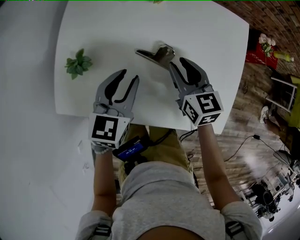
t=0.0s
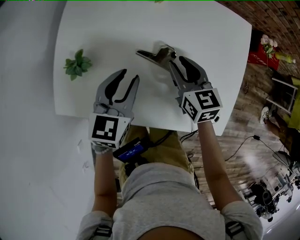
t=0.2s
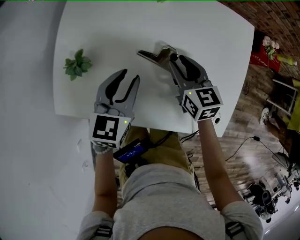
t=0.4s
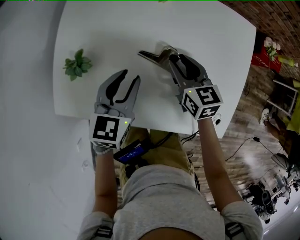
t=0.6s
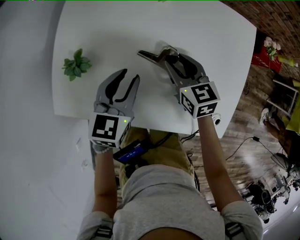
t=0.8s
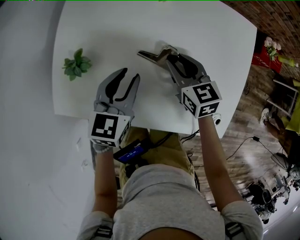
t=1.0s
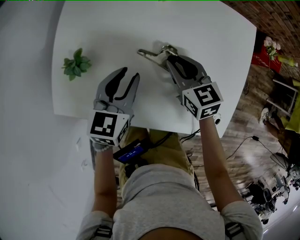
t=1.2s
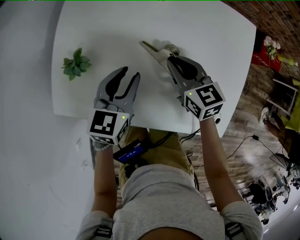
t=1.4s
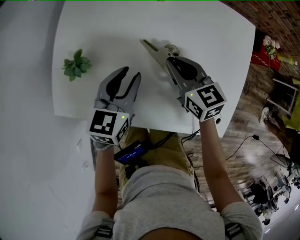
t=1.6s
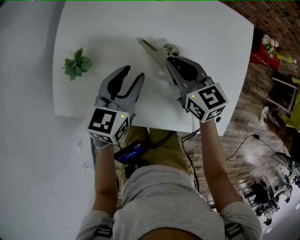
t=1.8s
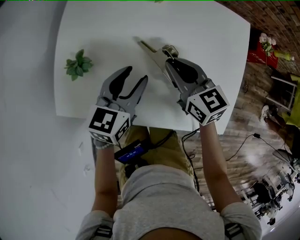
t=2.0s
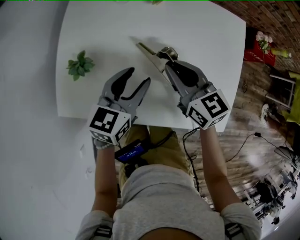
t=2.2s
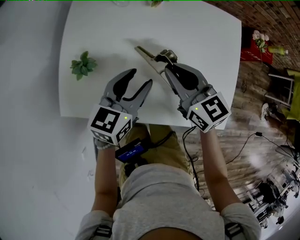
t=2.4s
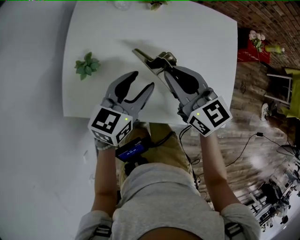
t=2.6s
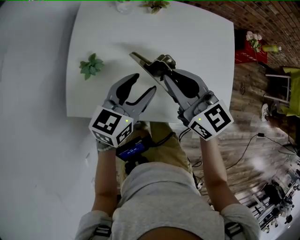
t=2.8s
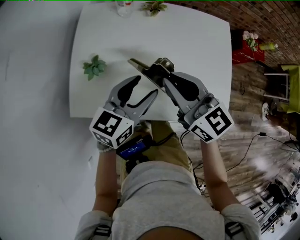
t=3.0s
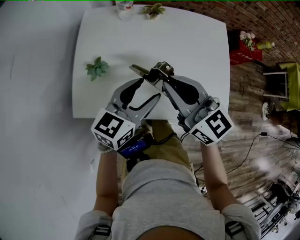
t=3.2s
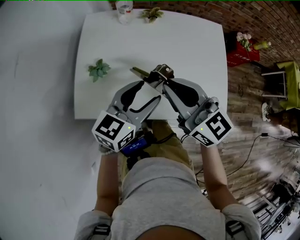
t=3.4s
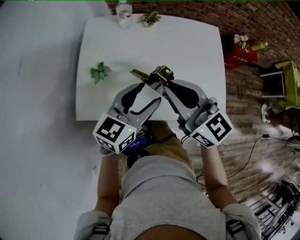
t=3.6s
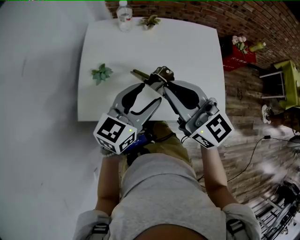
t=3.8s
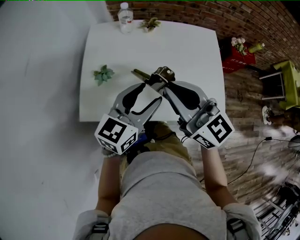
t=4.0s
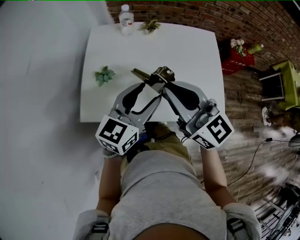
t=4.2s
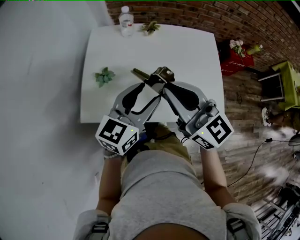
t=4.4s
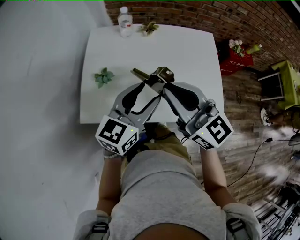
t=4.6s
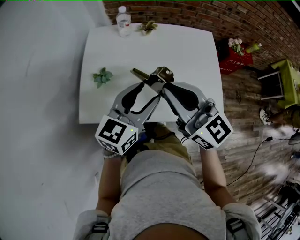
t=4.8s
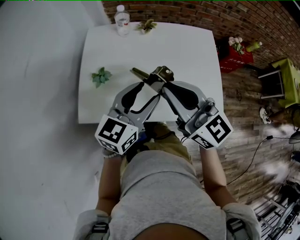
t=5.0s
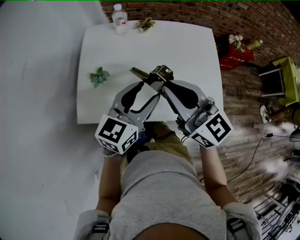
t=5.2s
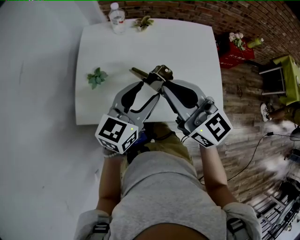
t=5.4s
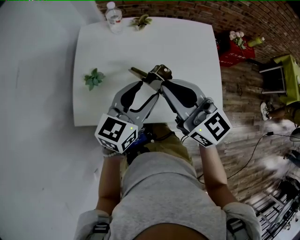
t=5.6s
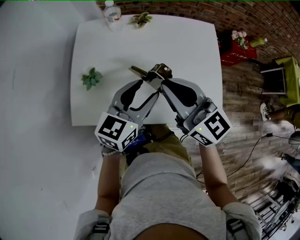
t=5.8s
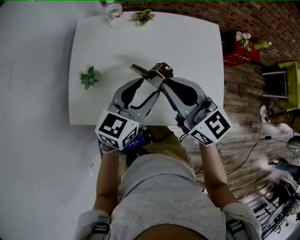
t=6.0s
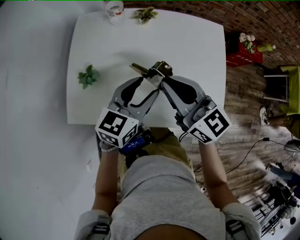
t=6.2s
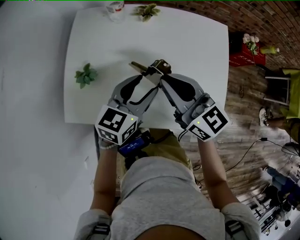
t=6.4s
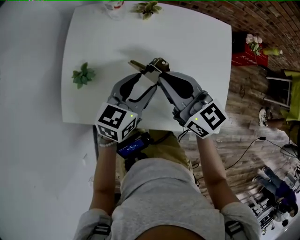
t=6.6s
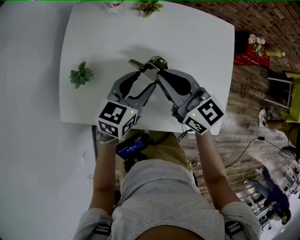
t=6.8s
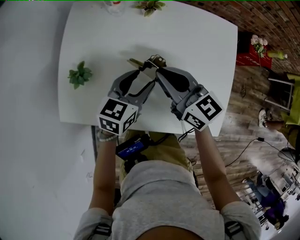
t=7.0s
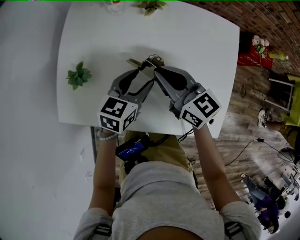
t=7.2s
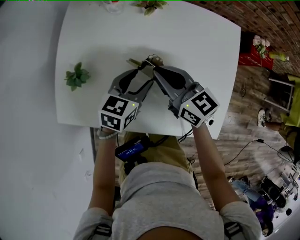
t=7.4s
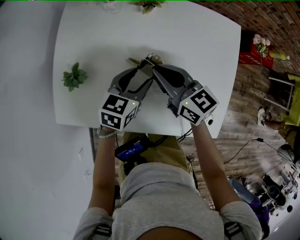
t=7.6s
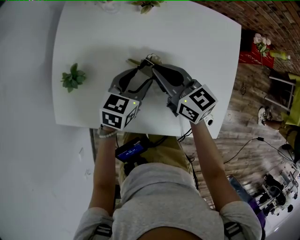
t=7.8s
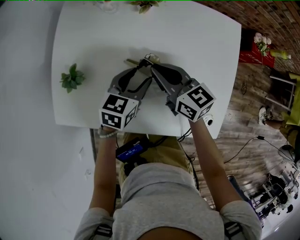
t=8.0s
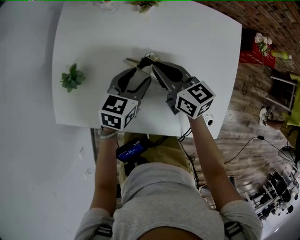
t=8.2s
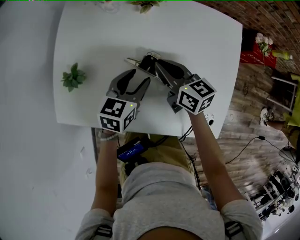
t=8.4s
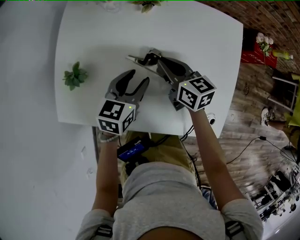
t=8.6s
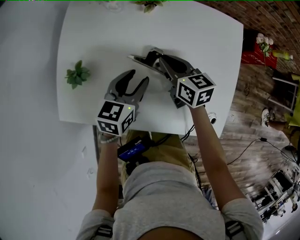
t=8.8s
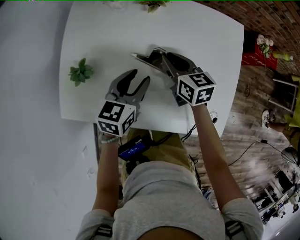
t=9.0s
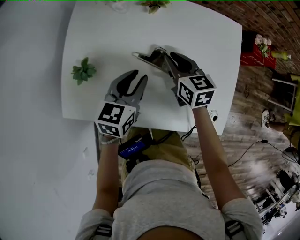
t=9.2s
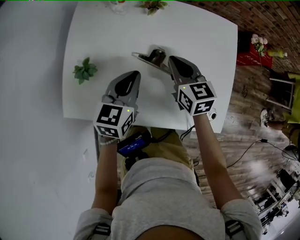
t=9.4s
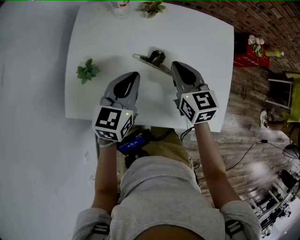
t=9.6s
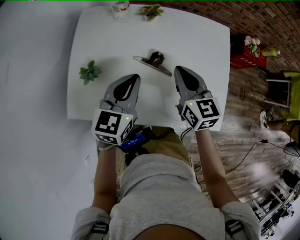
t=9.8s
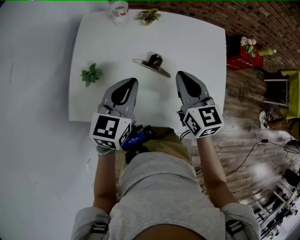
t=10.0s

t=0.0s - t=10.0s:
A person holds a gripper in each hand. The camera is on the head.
t=0.0s - t=1.4s: The grippers move only a little.
t=1.4s - t=2.8s: The right gripper moves upward and backward, some 20 cm, and turns by roughly 20 degrees, while the left gripper travels upward and backward by some 10 cm, and opens its fingers.
t=2.8s - t=4.2s: The two grippers go about 10 cm upward and backward.
t=4.2s - t=5.8s: The right gripper shifts by about 5 cm, while the left gripper moves roughly 5 cm.
t=5.8s - t=7.2s: The two grippers go about 15 cm downward and forward.
t=7.2s - t=8.6s: The right gripper is displaced downward by some 10 cm.
t=8.6s - t=10.0s: The right gripper goes some 15 cm upward and backward, and changes its angle by approximately 30 degrees; the left gripper is displaced upward by about 15 cm, and closes.

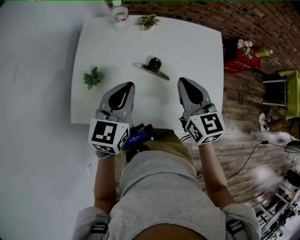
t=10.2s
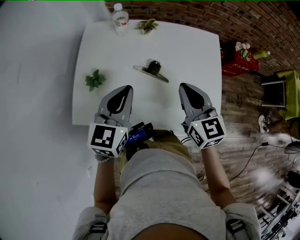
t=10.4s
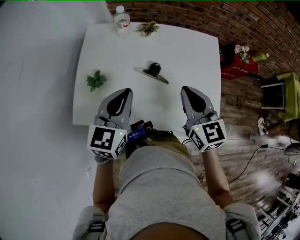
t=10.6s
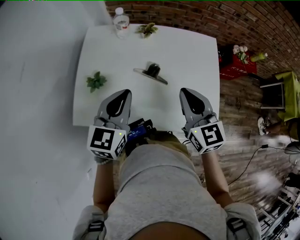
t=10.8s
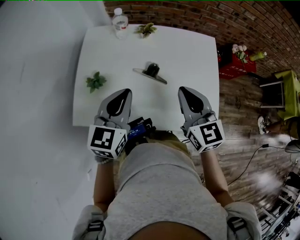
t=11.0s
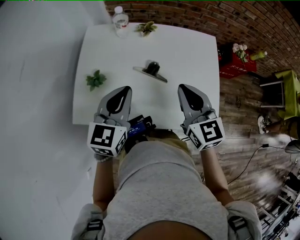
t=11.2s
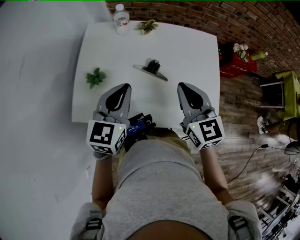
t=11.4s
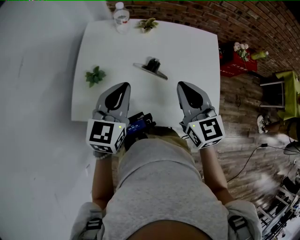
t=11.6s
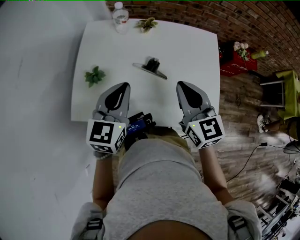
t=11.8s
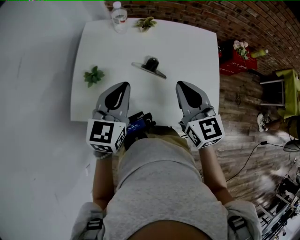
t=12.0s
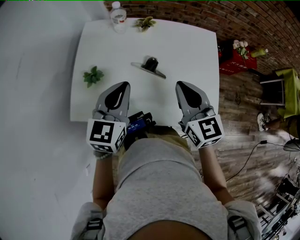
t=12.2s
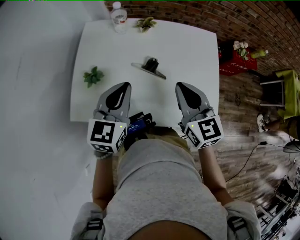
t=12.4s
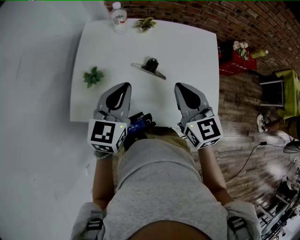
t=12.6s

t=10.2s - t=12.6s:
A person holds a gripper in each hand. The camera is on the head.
t=10.2s - t=11.4s: The grippers stay close to where they were, moving slightly.
t=11.4s - t=12.6s: The two grippers keep their place.

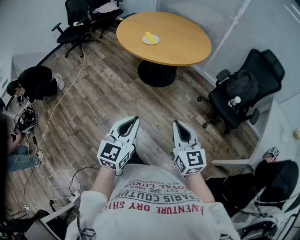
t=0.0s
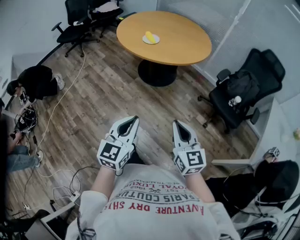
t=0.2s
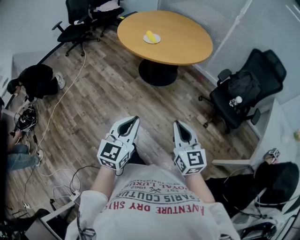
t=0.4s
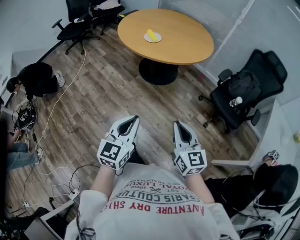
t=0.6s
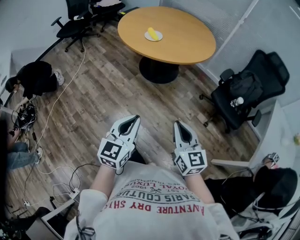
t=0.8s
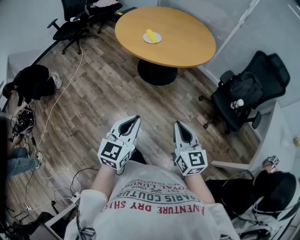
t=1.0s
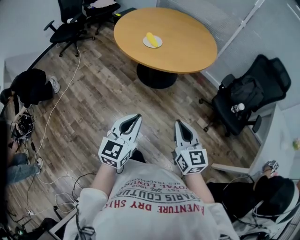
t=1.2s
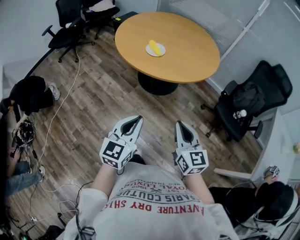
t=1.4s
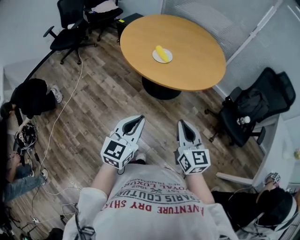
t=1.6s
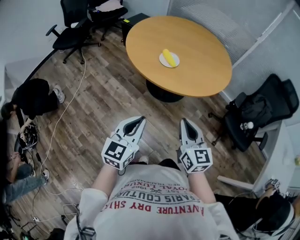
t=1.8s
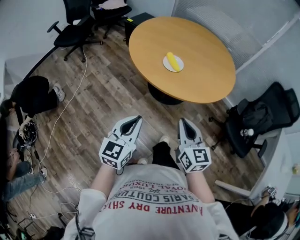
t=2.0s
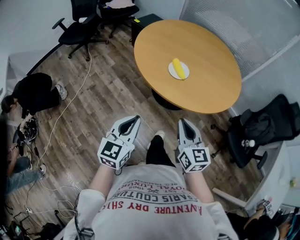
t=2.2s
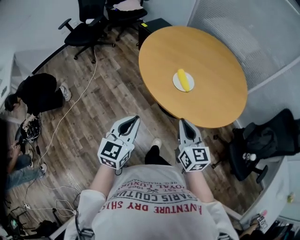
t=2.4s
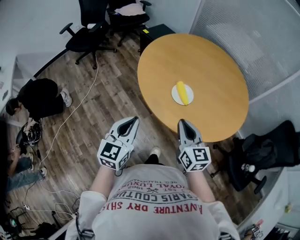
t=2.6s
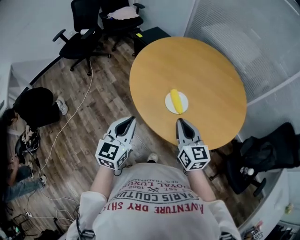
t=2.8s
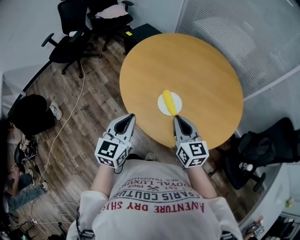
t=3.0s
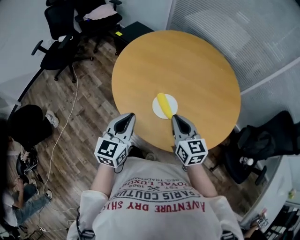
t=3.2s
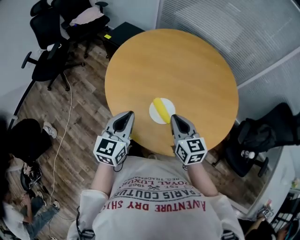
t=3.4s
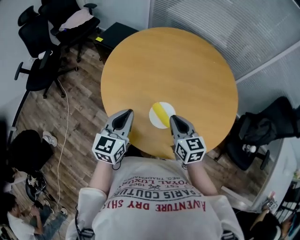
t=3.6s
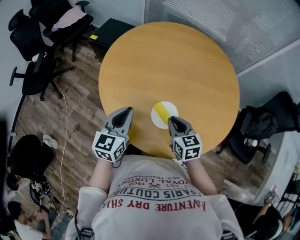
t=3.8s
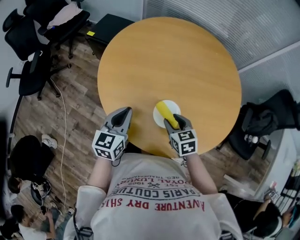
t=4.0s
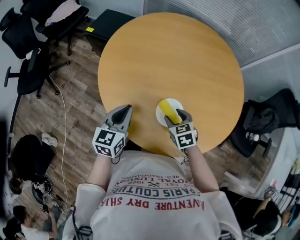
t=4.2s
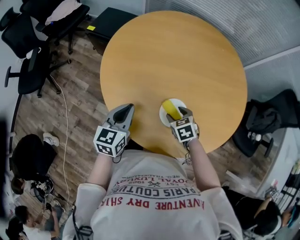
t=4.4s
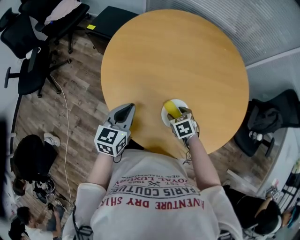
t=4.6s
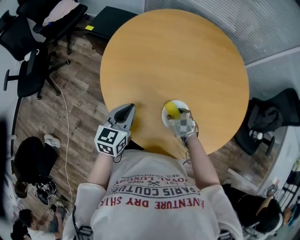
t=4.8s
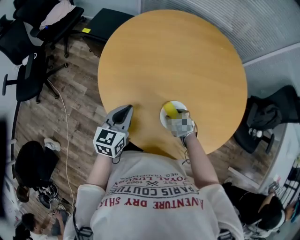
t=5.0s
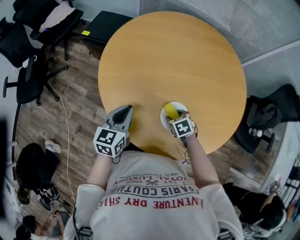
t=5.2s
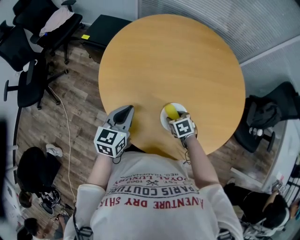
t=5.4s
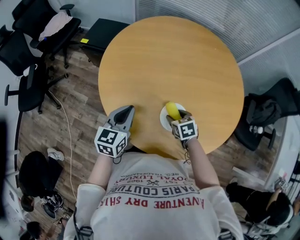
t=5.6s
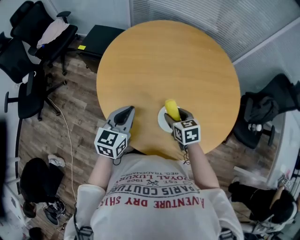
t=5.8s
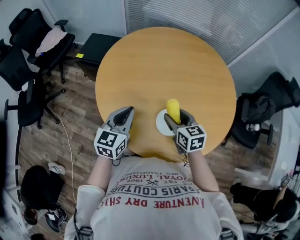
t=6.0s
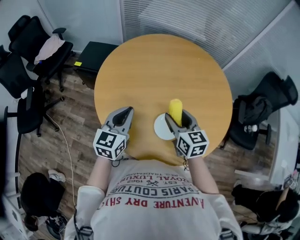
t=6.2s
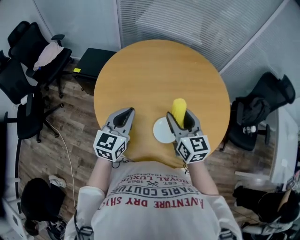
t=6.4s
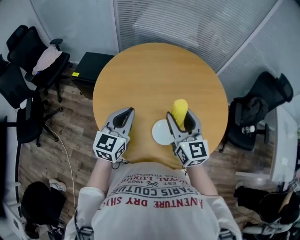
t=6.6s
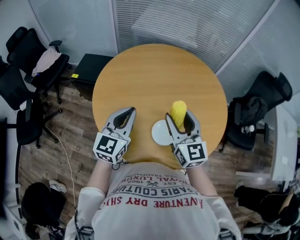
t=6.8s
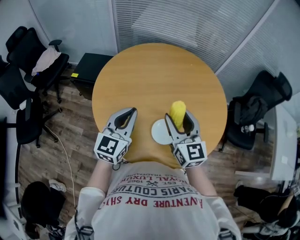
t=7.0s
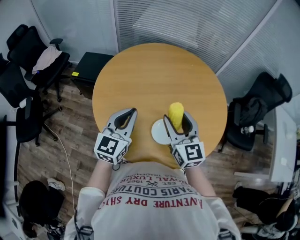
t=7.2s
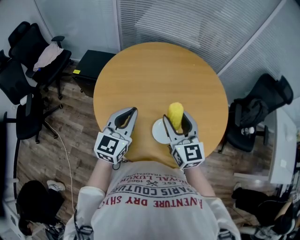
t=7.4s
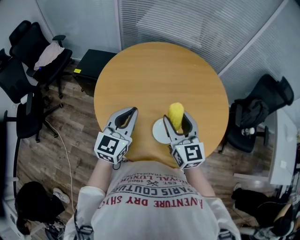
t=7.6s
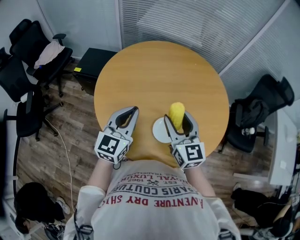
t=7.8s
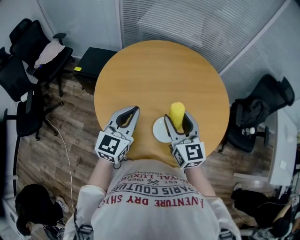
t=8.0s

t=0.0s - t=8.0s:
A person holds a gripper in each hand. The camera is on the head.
t=0.0s - t=1.6s: Both grippers travel together forward and to the left, some 25 cm.
t=1.6s - t=3.2s: The two grippers travel together, forward, roughly 40 cm.
t=3.2s - t=4.8s: The right gripper heads downward and forward, covering some 25 cm, tilts its fingers some 50 degrees downward, and opens up. Meanwhile the left gripper is displaced forward and downward by about 20 cm, and changes its angle by roughly 20 degrees.
t=4.8s - t=6.4s: The left gripper is displaced upward by roughly 10 cm, and rotates roughly 20 degrees. Meanwhile the right gripper goes about 30 cm upward, and tilts its fingers about 60 degrees upward.
t=6.4s - t=8.0s: The grippers move only a little.

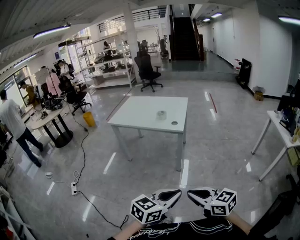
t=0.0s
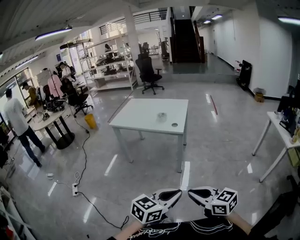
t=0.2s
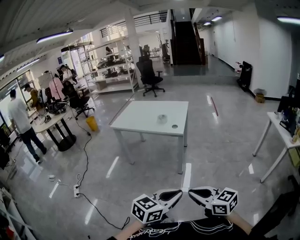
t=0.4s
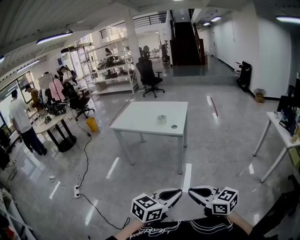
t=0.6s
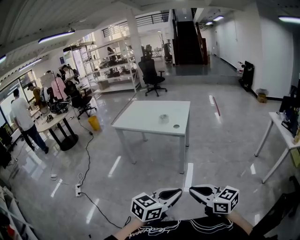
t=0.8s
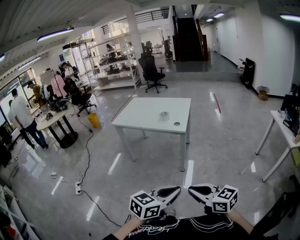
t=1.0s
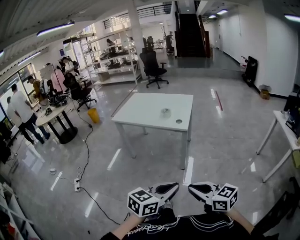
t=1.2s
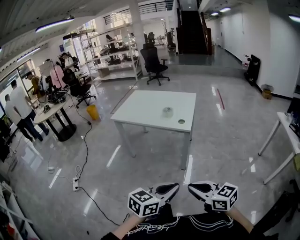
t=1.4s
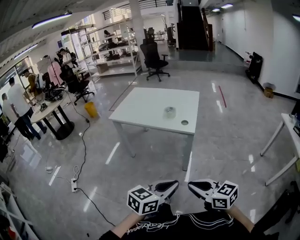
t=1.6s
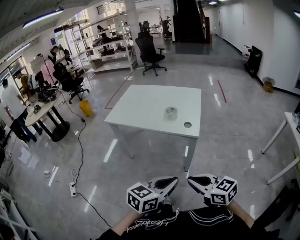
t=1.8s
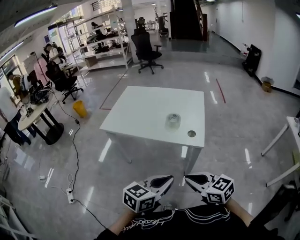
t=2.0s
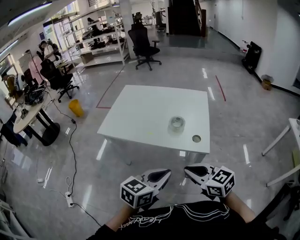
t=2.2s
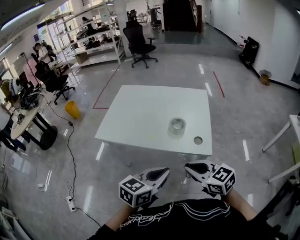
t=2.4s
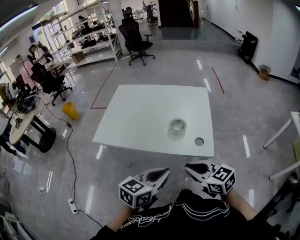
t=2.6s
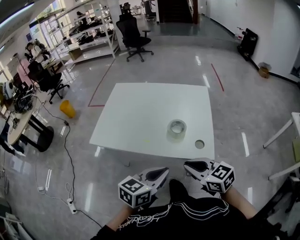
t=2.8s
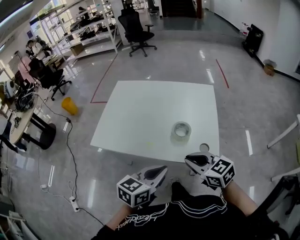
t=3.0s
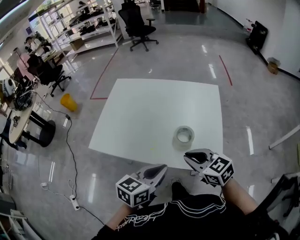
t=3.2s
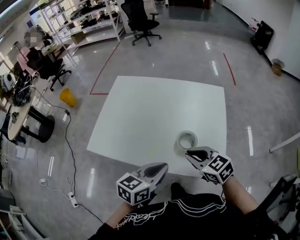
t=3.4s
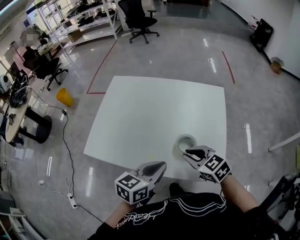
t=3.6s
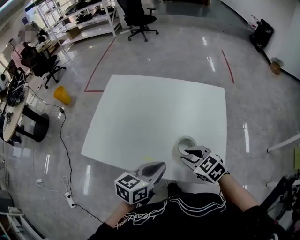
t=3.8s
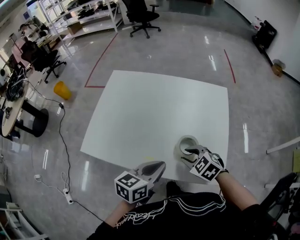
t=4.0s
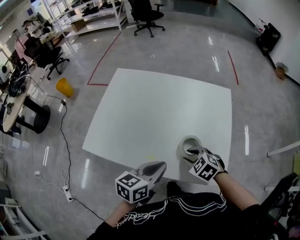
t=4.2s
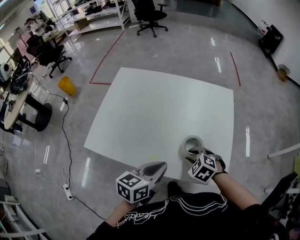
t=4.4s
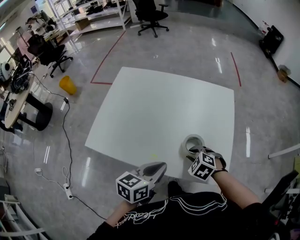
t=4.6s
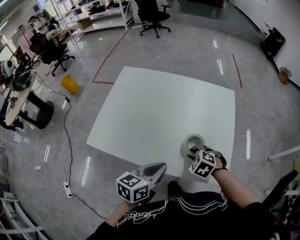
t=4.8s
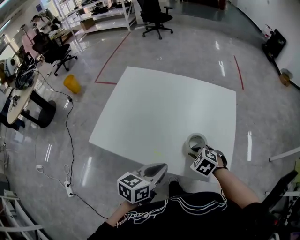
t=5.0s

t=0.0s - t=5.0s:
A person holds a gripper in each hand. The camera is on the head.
t=0.0s - t=1.6s: Both grippers move forward, about 15 cm.
t=1.6s - t=3.4s: Both grippers are carried forward, roughly 60 cm.
t=3.4s - t=5.0s: The right gripper shifts approximately 10 cm downward, and tips its fingers downward by some 30 degrees. Meanwhile the left gripper moves some 5 cm.
